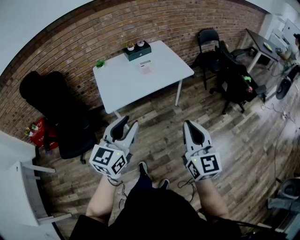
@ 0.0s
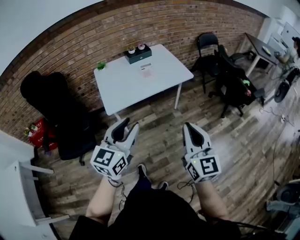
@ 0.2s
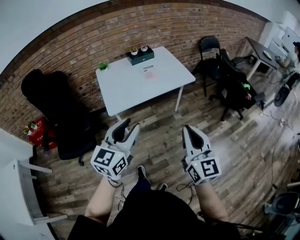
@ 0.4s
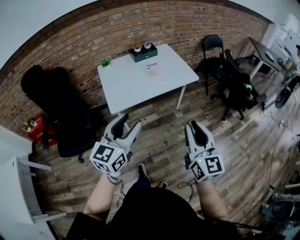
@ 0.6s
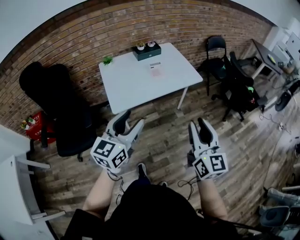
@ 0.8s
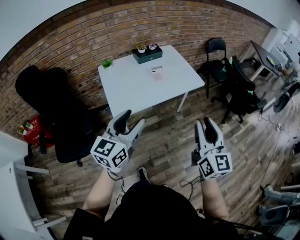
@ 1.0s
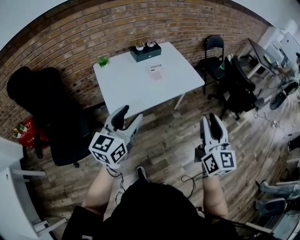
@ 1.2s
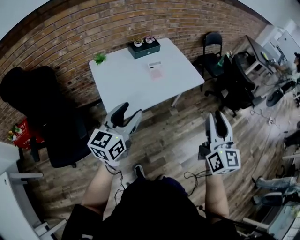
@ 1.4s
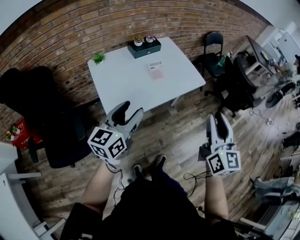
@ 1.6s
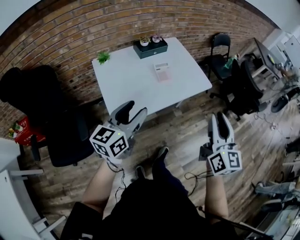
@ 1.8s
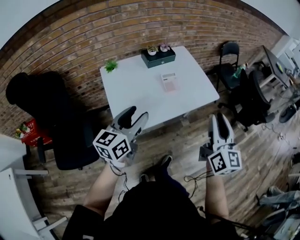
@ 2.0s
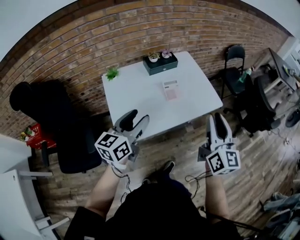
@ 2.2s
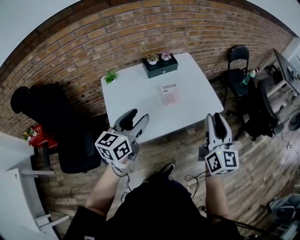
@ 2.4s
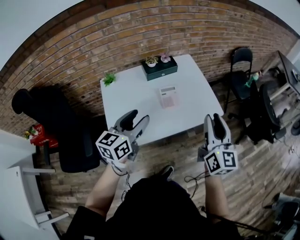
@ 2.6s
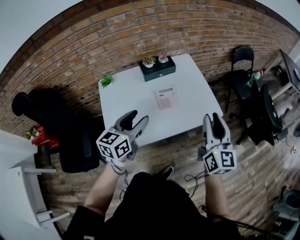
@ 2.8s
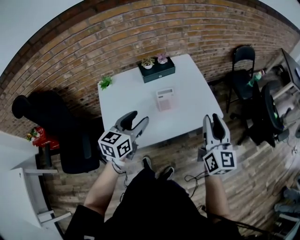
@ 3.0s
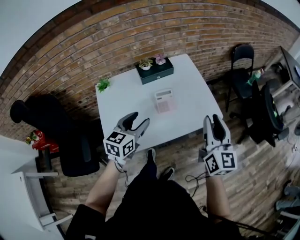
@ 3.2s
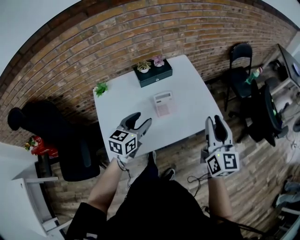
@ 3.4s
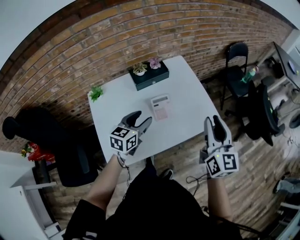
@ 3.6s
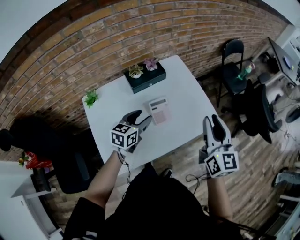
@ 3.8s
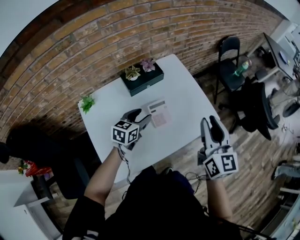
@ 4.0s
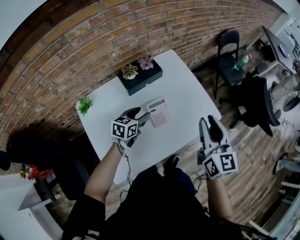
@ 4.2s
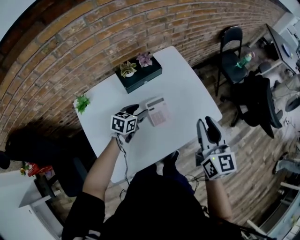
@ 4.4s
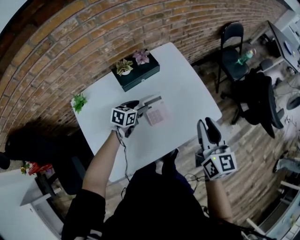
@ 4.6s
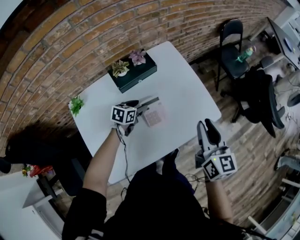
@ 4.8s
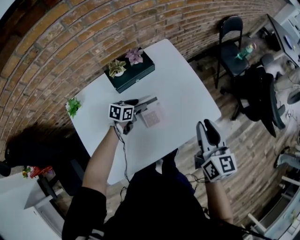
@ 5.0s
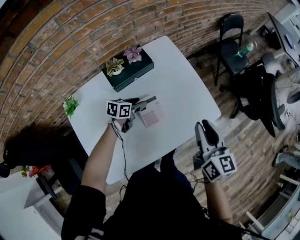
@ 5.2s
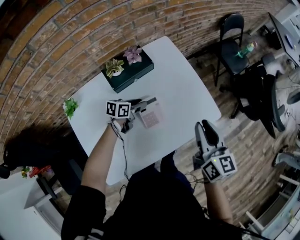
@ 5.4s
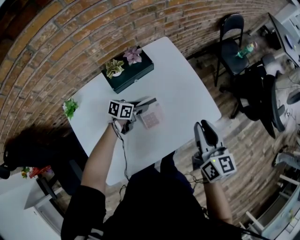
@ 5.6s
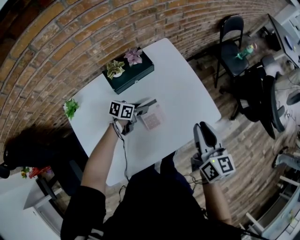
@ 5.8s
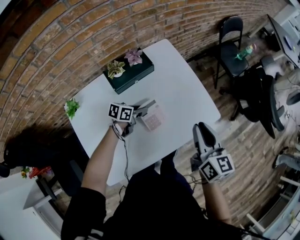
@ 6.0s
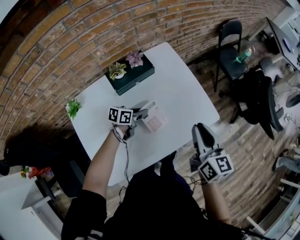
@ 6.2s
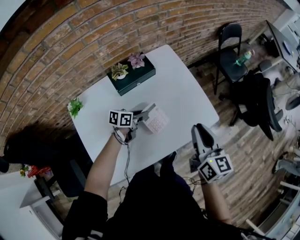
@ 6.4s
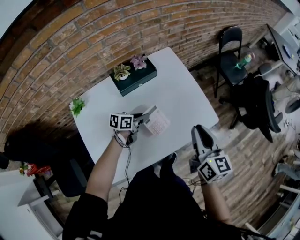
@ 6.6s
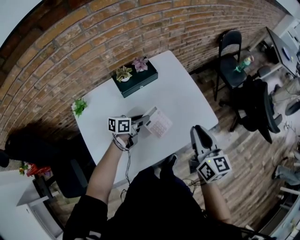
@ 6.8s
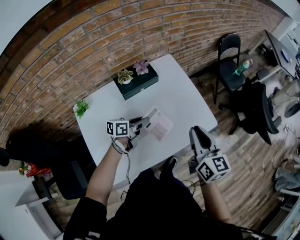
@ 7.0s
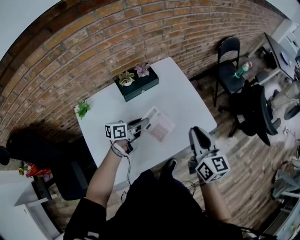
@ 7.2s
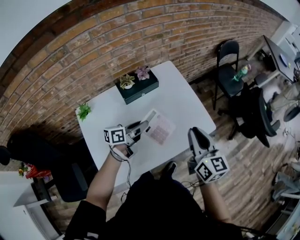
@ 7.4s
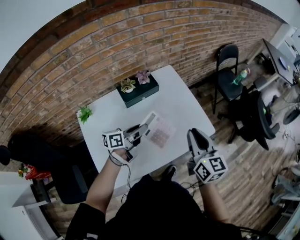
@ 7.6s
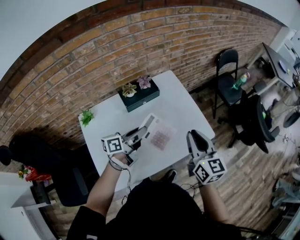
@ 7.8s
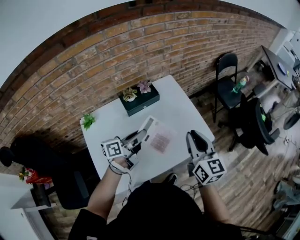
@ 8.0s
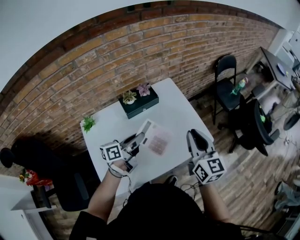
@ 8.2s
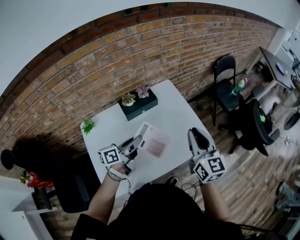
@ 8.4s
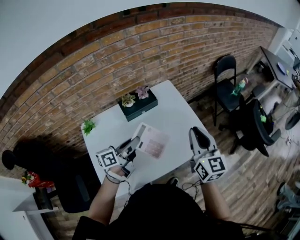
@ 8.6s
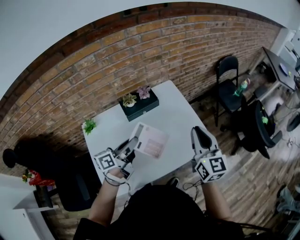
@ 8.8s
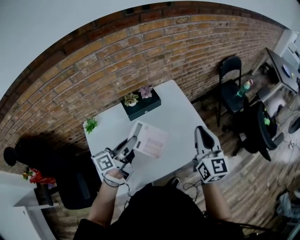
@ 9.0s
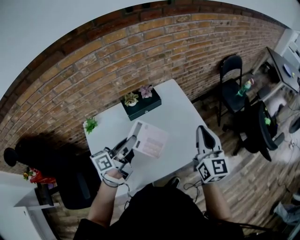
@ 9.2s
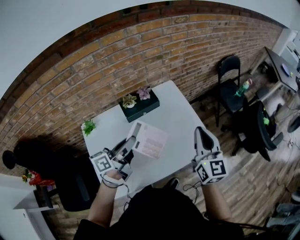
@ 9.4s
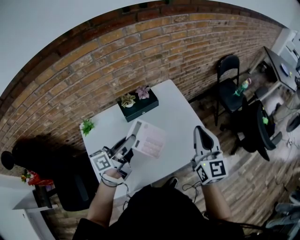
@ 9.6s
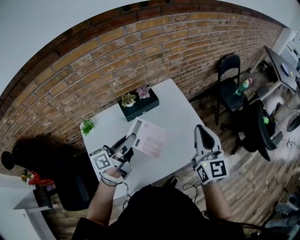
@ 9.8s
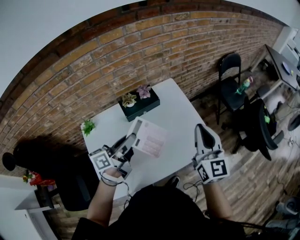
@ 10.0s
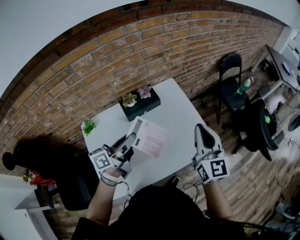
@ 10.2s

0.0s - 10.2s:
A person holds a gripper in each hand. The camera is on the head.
0.0s - 1.4s: The right gripper goes approximately 20 cm forward and to the left, and opens its fingers. Meanwhile the left gripper heads to the left and forward, covering some 25 cm.
1.4s - 3.0s: Both grippers travel together forward, approximately 30 cm.
3.0s - 4.4s: The left gripper shifts approximately 30 cm forward and downward, and swivels about 30 degrees; the right gripper travels forward, to the left and downward by about 15 cm.
4.4s - 5.8s: The left gripper shifts about 10 cm downward and forward, swivels approximately 20 degrees, and closes up. The right gripper is displaced downward by about 5 cm.
5.8s - 7.2s: The right gripper changes place by some 5 cm. Meanwhile the left gripper moves upward and backward, about 15 cm, and turns by about 30 degrees.
7.2s - 8.8s: The right gripper moves upward, approximately 5 cm, while the left gripper travels upward by some 15 cm, and changes its angle by about 20 degrees.
8.8s - 10.2s: The grippers make only small movements.

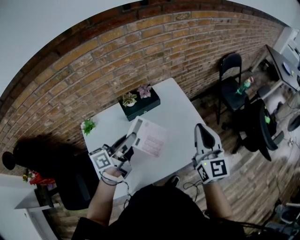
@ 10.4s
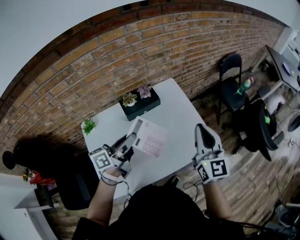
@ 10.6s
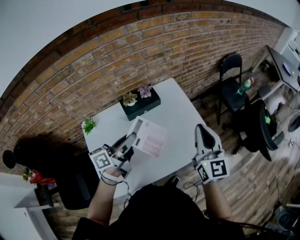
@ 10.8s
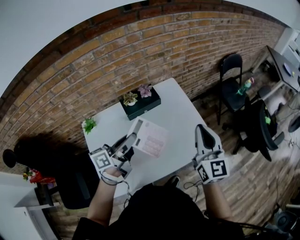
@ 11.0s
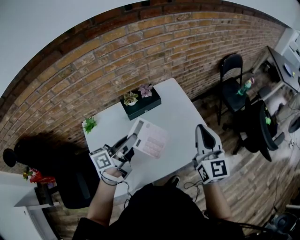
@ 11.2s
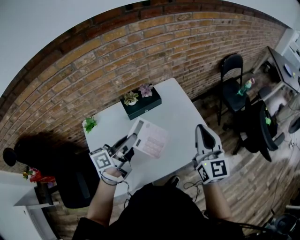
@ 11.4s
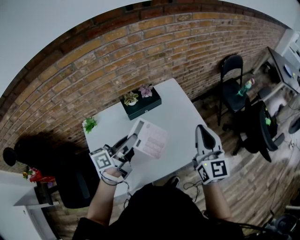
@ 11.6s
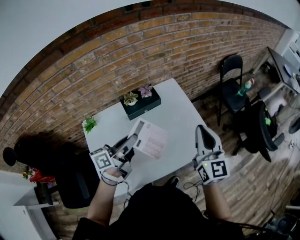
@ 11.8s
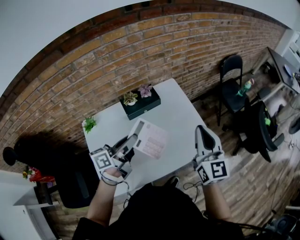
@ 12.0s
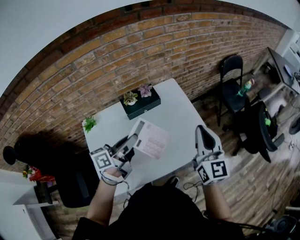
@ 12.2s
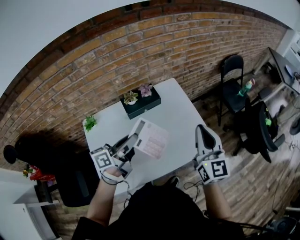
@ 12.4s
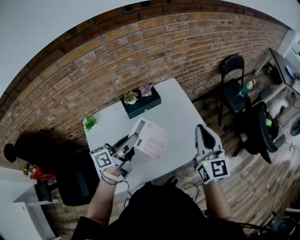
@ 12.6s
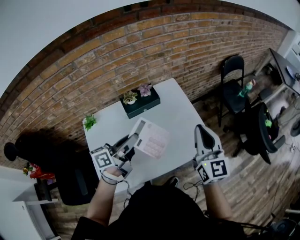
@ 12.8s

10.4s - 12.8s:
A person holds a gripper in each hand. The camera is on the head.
10.4s - 11.6s: The two grippers keep their place.
11.6s - 12.8s: The grippers stay close to where they were, moving slightly.

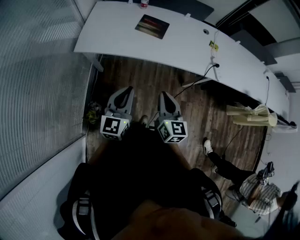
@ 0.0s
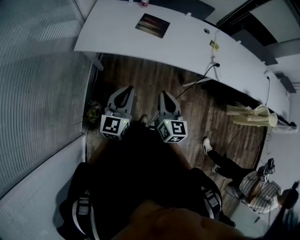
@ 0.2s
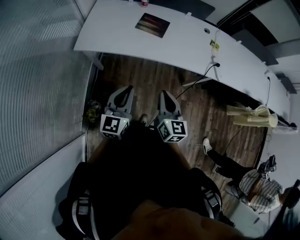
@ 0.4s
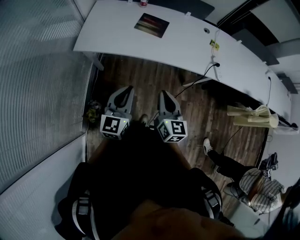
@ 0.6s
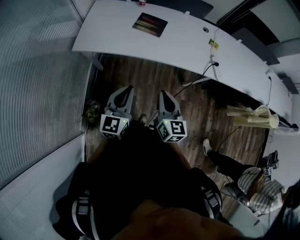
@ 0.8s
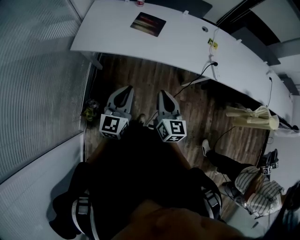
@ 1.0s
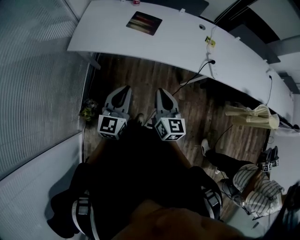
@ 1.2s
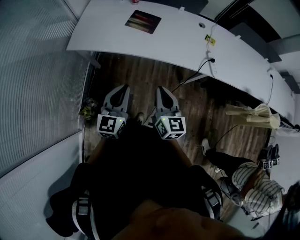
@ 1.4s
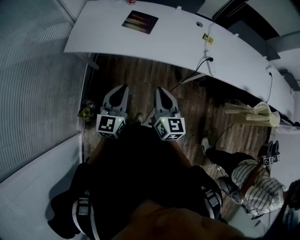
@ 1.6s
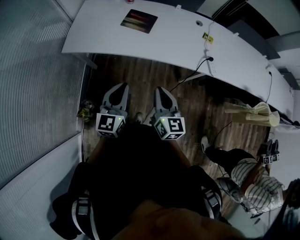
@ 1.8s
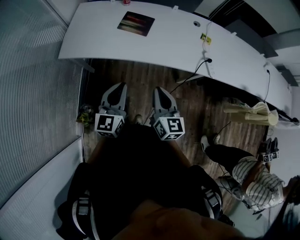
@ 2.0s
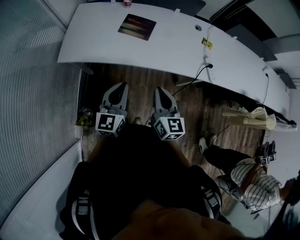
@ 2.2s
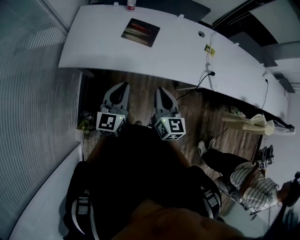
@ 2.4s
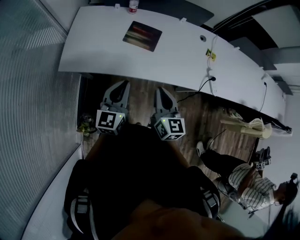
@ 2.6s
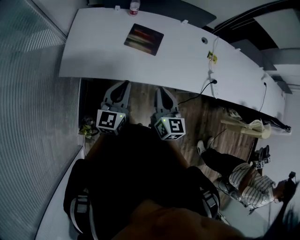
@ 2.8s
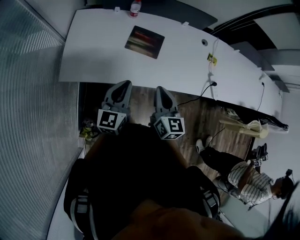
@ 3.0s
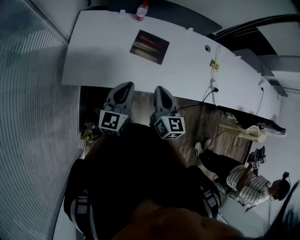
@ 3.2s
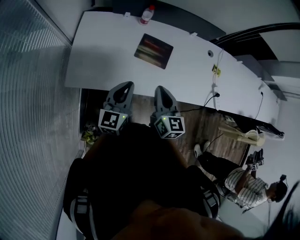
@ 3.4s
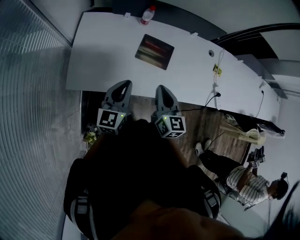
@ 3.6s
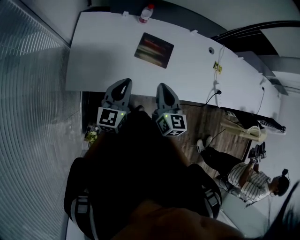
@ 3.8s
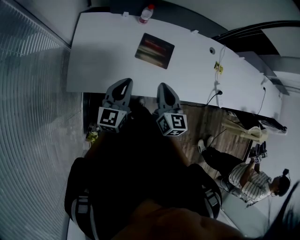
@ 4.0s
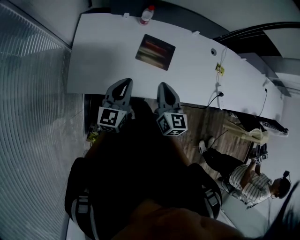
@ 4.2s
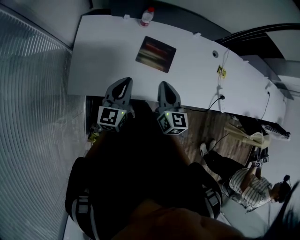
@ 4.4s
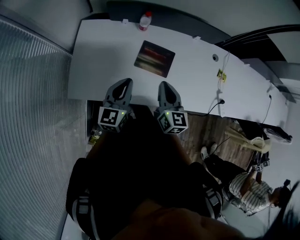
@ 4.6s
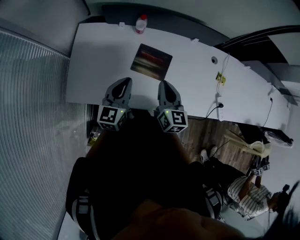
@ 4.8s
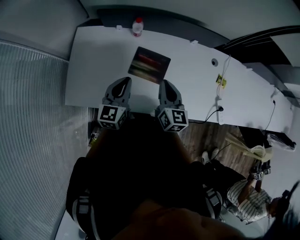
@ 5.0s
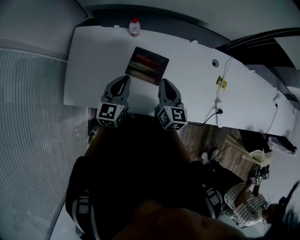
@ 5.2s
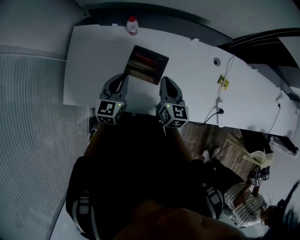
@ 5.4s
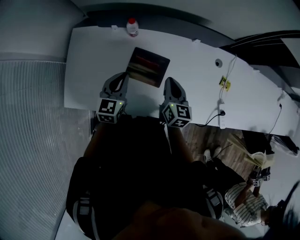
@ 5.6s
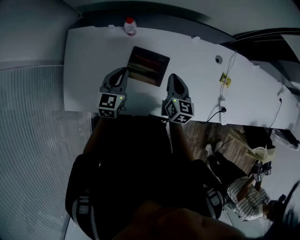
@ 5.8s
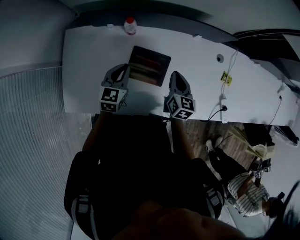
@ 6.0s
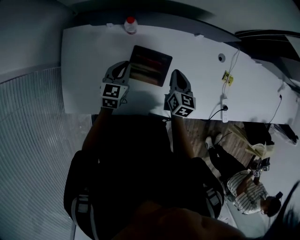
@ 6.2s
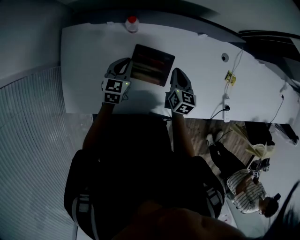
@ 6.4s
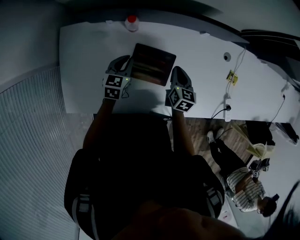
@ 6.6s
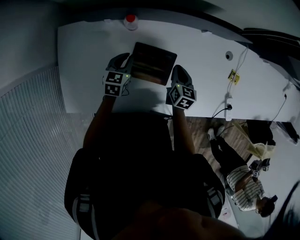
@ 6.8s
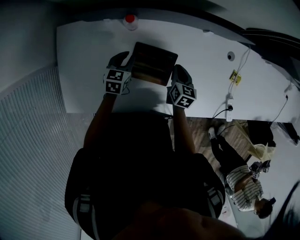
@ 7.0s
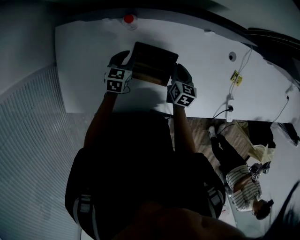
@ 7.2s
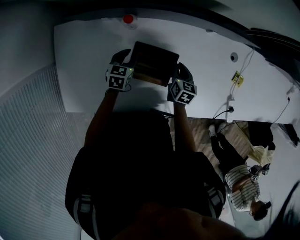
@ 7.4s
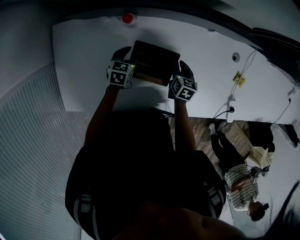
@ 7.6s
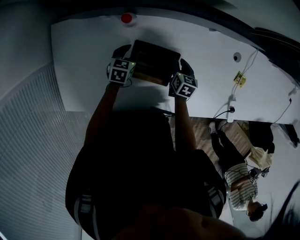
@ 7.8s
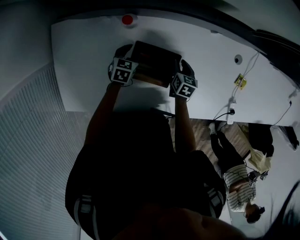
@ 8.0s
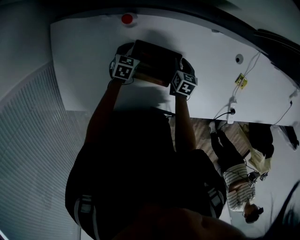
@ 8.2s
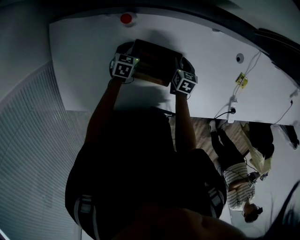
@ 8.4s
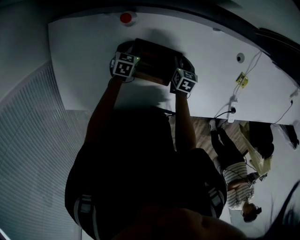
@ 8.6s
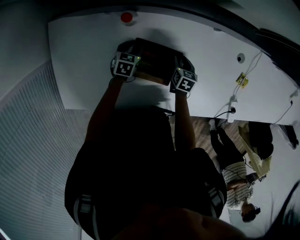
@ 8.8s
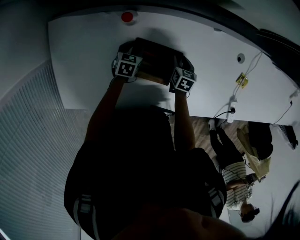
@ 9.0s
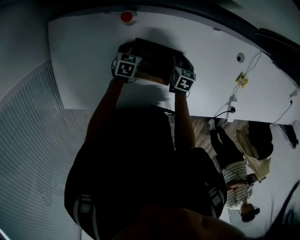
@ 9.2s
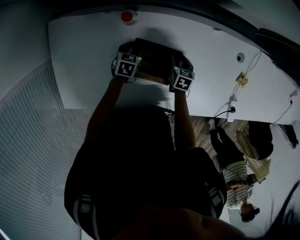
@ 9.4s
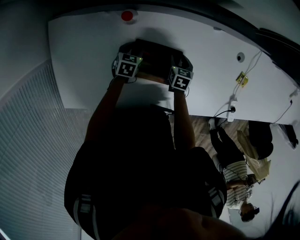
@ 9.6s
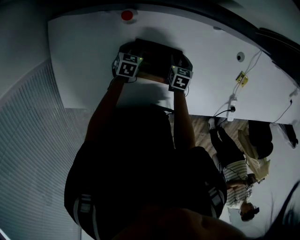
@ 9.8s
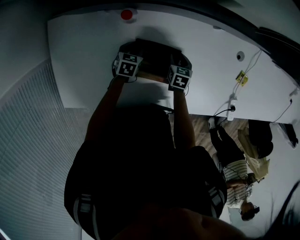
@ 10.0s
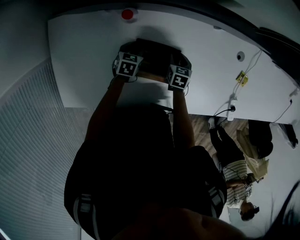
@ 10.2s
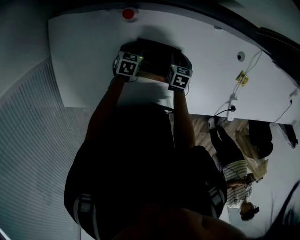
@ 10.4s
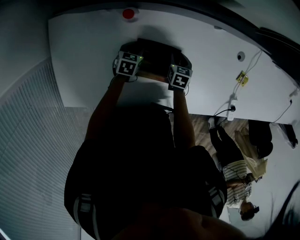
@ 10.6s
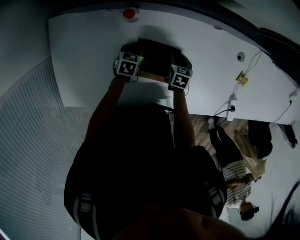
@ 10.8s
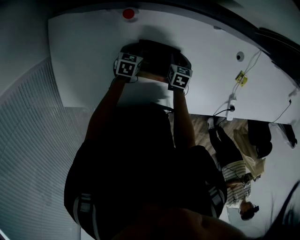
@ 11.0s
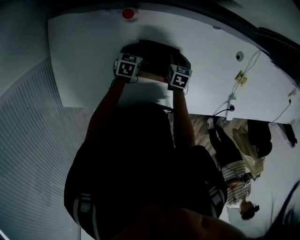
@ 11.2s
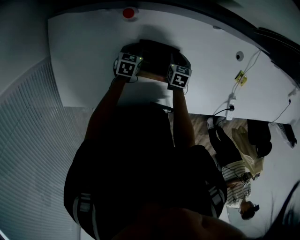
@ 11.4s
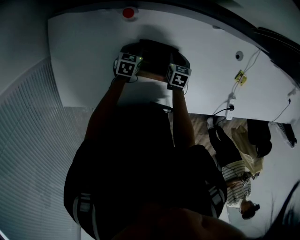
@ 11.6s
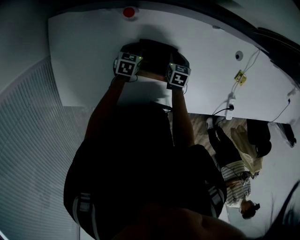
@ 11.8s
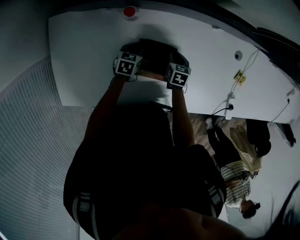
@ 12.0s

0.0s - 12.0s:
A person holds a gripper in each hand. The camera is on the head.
0.0s - 1.6s: The two grippers go roughly 10 cm to the right.
1.6s - 3.0s: The grippers both shift forward and to the left by approximately 30 cm.
3.0s - 4.4s: Both grippers travel together forward and to the left, some 15 cm.
4.4s - 6.0s: The left gripper heads forward and downward, covering roughly 25 cm, and changes its angle by approximately 20 degrees; the right gripper moves forward, to the right and downward, some 30 cm.
6.0s - 7.6s: The right gripper heads downward, covering some 20 cm, and turns by about 20 degrees. Meanwhile the left gripper heads downward and forward, covering about 25 cm, swivels roughly 20 degrees, and opens.
7.6s - 9.0s: The right gripper travels downward by approximately 5 cm. The left gripper changes place by some 5 cm.
9.0s - 10.4s: There are only small adjustments of the grippers.
10.4s - 12.0s: The two grippers keep their place.
